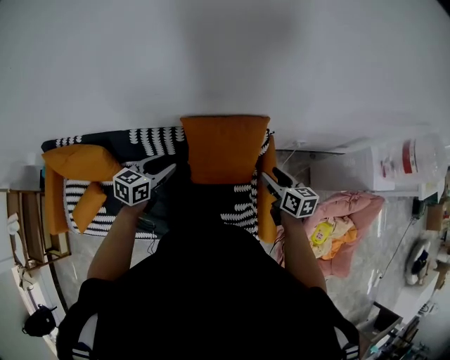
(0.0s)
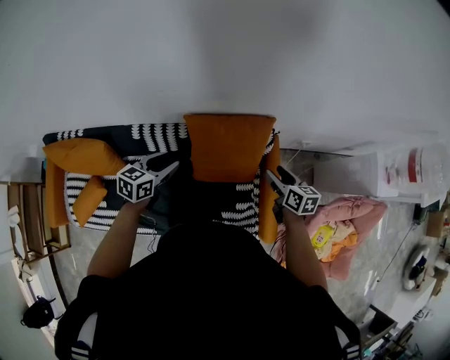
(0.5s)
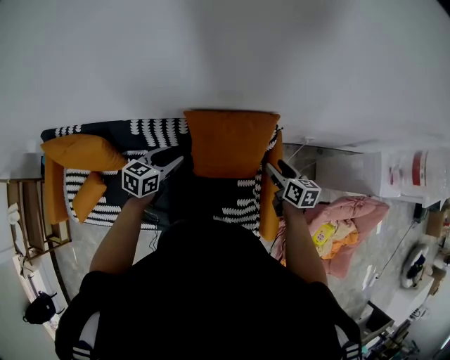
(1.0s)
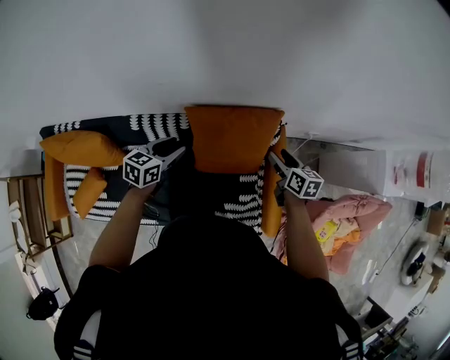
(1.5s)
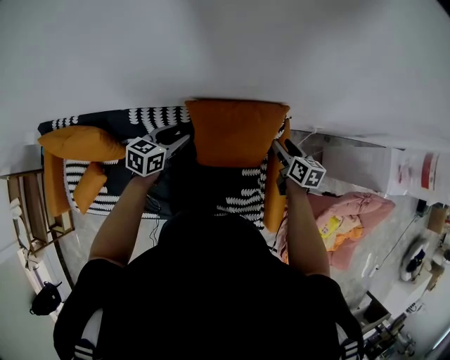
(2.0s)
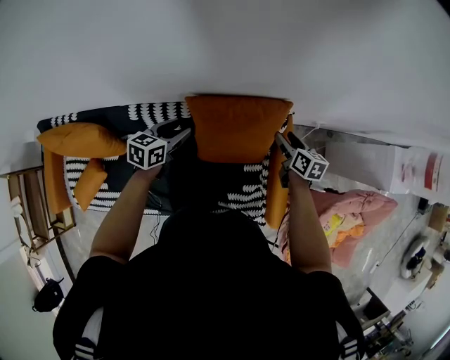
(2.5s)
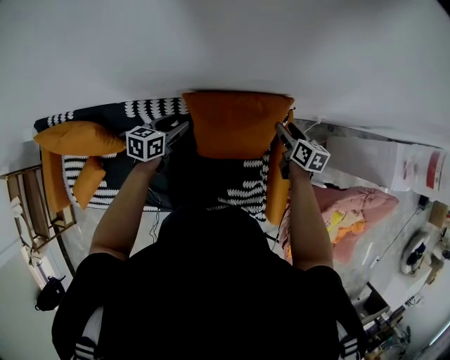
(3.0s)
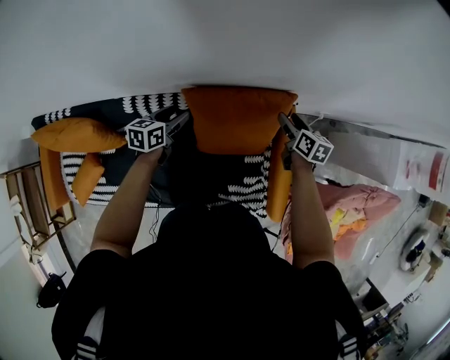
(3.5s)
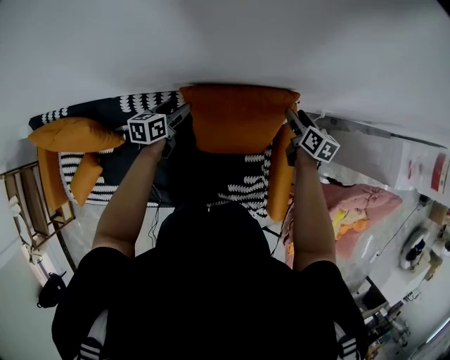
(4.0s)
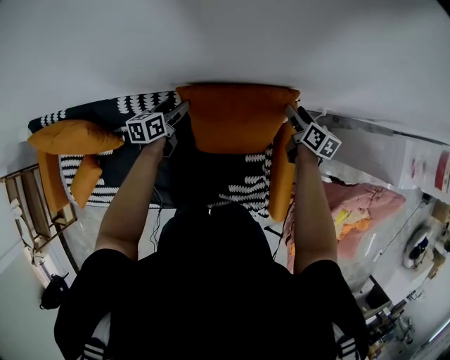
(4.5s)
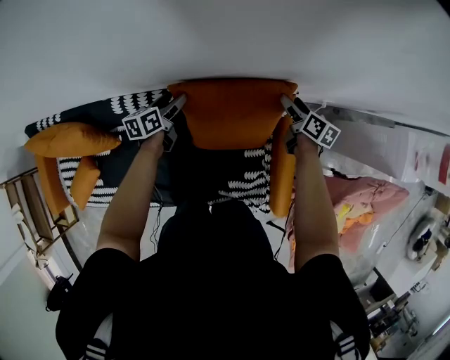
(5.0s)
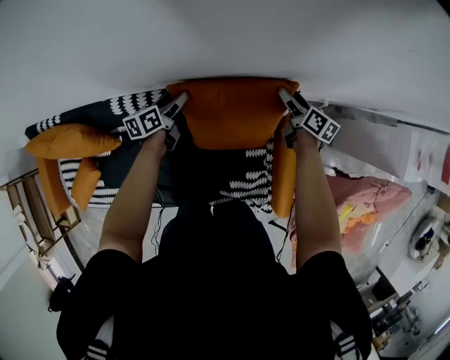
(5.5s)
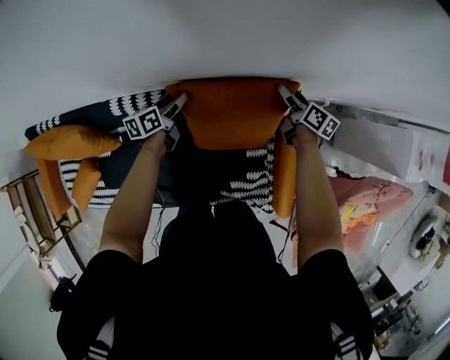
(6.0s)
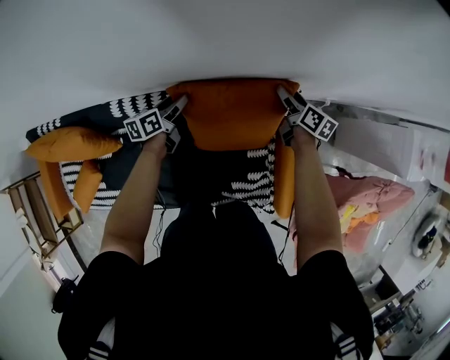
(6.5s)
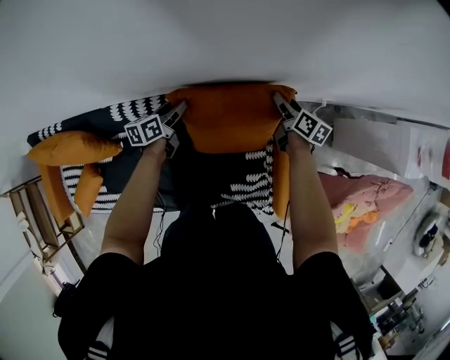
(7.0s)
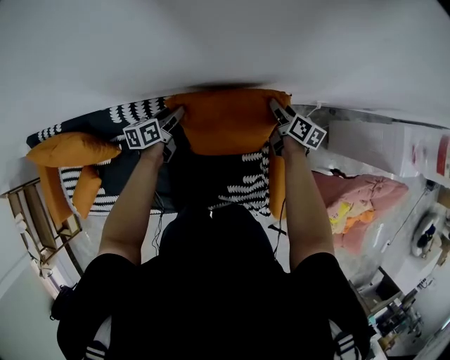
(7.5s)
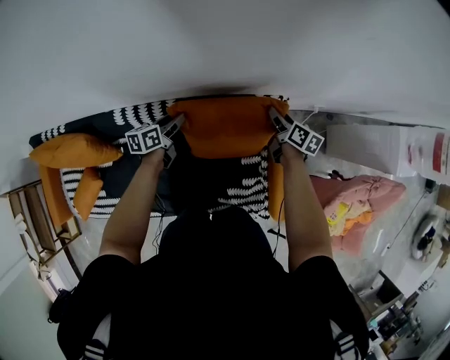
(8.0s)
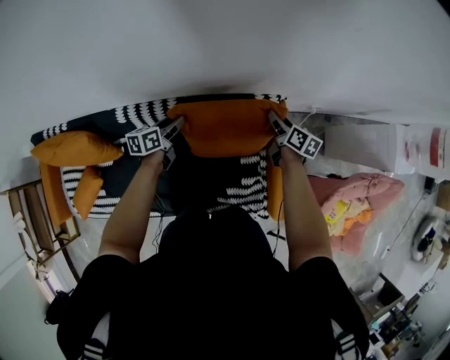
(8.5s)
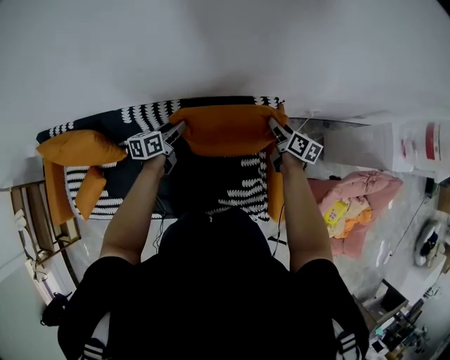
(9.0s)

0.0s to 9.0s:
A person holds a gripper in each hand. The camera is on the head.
0.0s to 2.0s: The grippers both shift forward and downward by approximately 15 cm.
2.0s to 4.5s: The right gripper travels forward and downward by some 10 cm, while the left gripper heads downward and forward, covering some 15 cm, changes its angle by approximately 20 degrees, and opens its fingers.
4.5s to 7.0s: The grippers stay close to where they were, moving slightly.
7.0s to 9.0s: The two grippers go roughly 10 cm backward and upward.

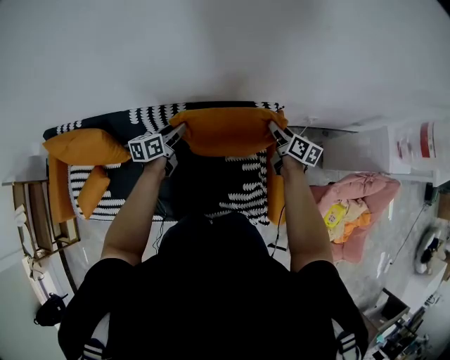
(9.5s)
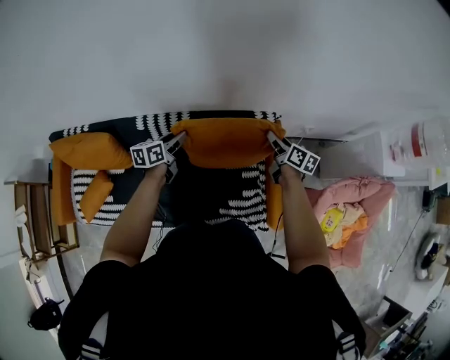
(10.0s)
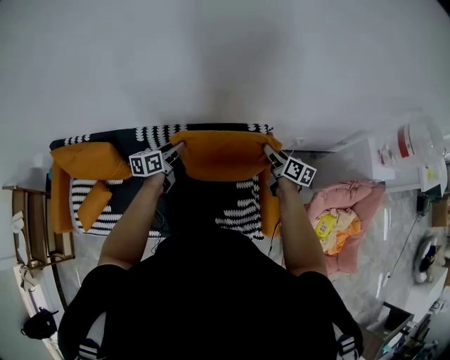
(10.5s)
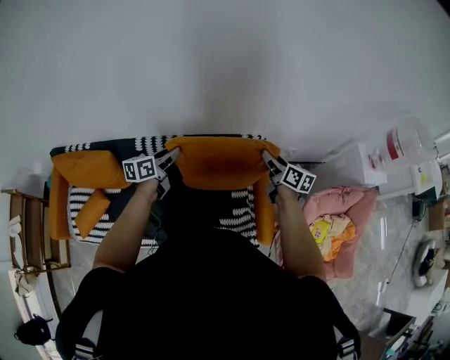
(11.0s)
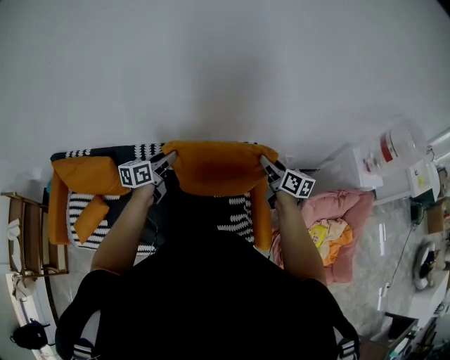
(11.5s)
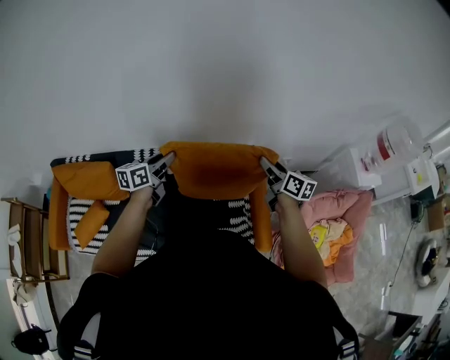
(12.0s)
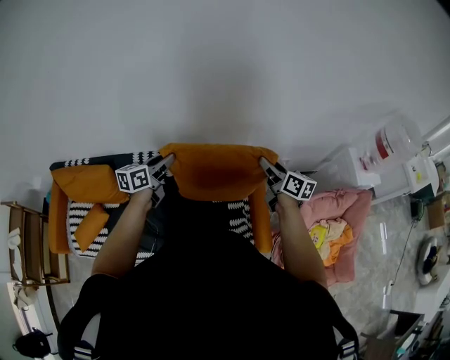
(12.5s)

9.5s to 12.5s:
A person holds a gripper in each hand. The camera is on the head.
9.5s to 11.0s: Both grippers move upward and backward, some 15 cm.
11.0s to 12.5s: Both grippers travel together upward, some 5 cm.

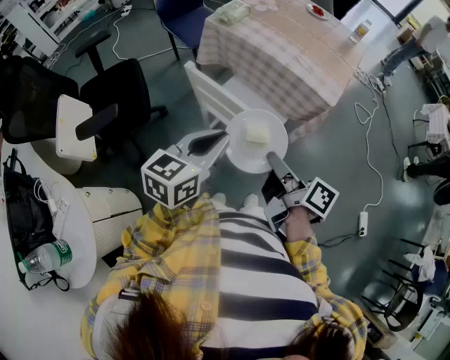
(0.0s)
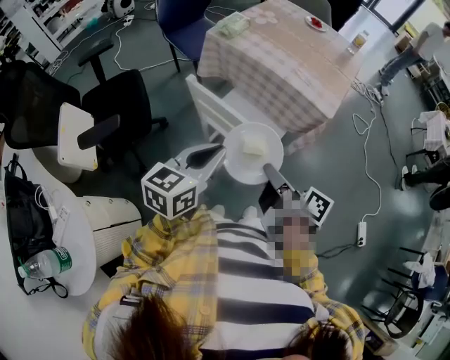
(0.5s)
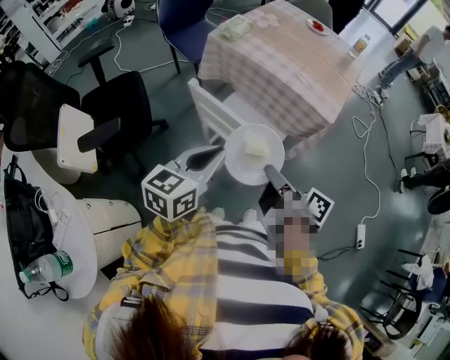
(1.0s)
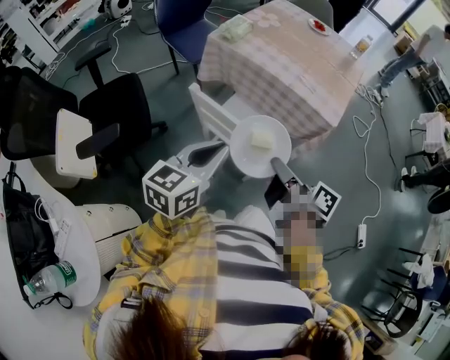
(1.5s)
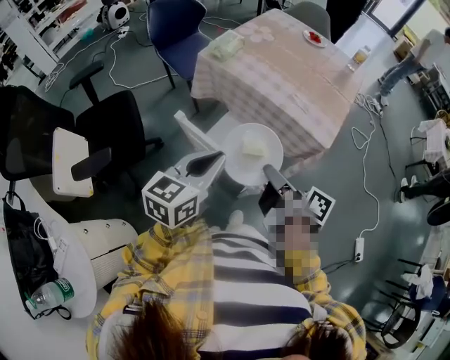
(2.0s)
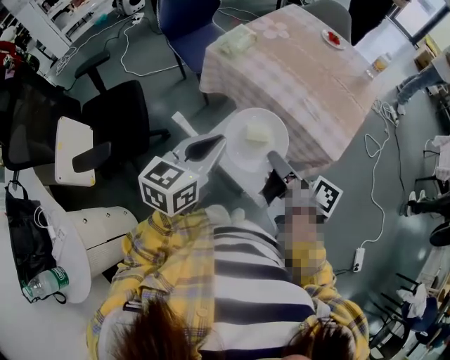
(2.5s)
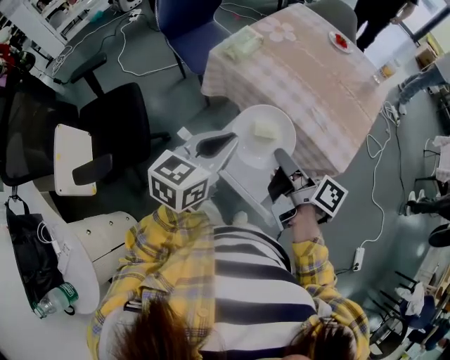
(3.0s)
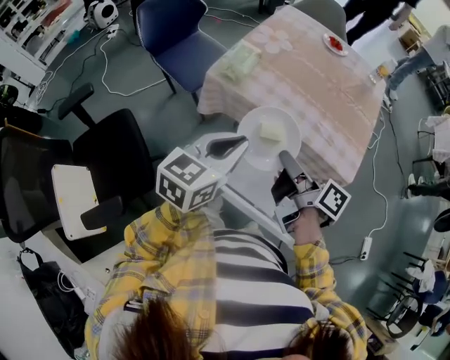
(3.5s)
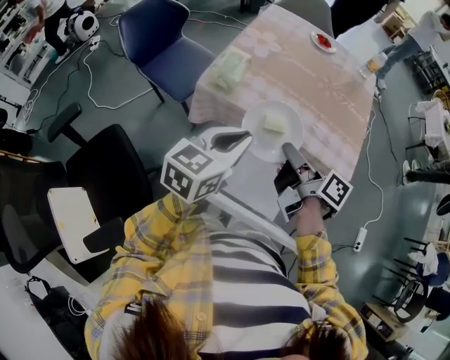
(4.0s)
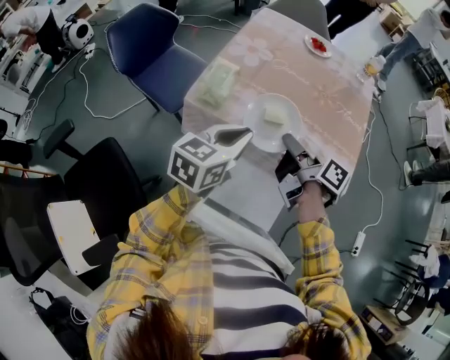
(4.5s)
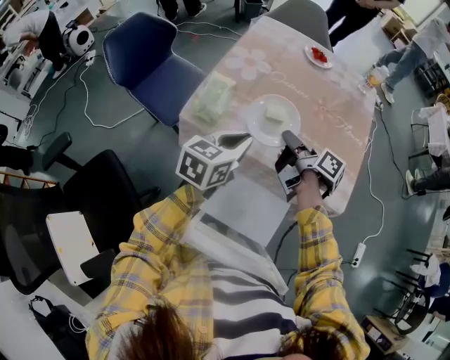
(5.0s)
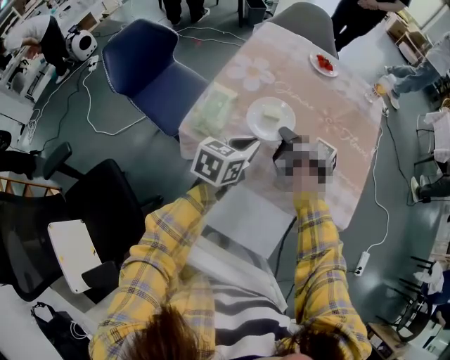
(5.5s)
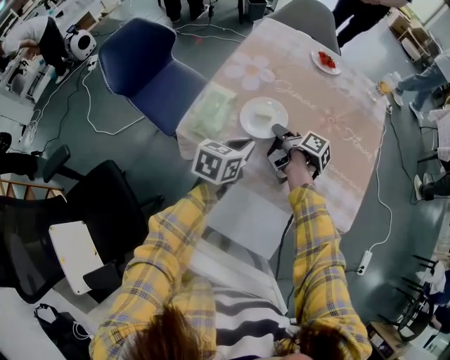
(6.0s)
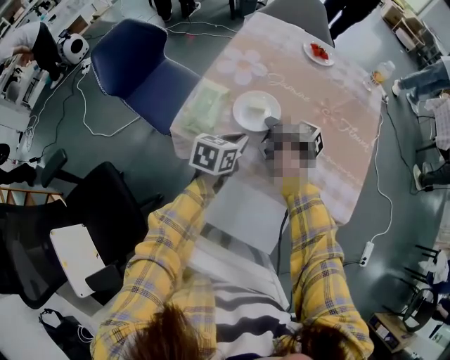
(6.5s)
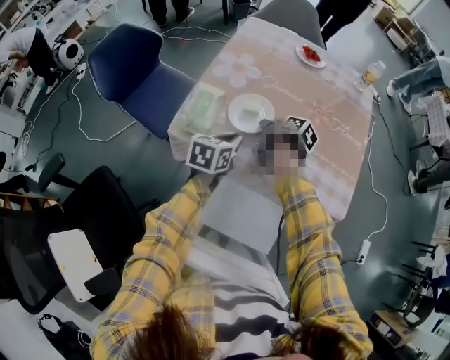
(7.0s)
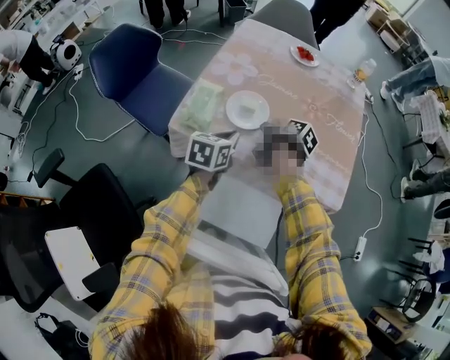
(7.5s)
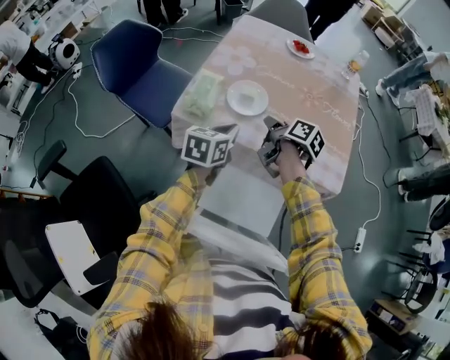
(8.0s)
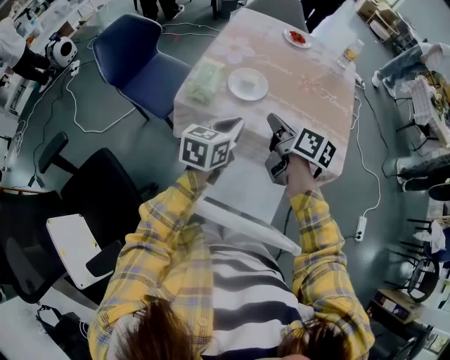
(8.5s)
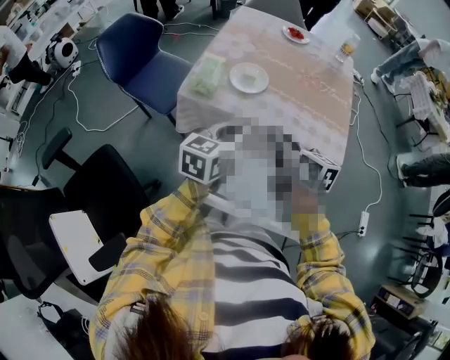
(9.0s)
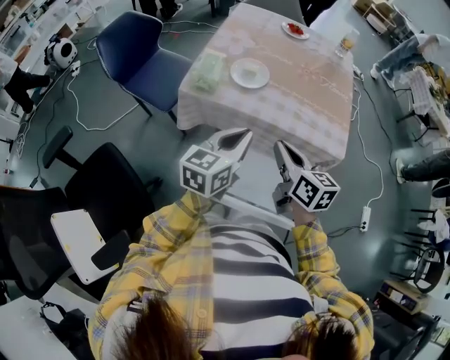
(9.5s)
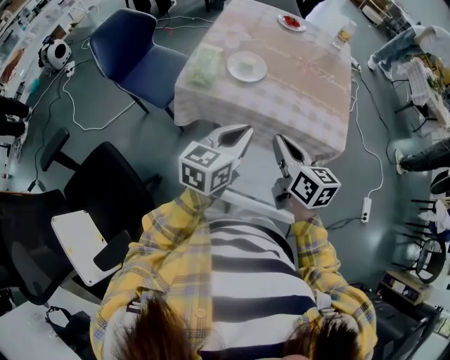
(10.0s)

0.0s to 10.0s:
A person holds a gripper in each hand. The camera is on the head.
0.0s to 2.0s: Both grippers move forward, some 10 cm.
2.0s to 4.0s: Both grippers move forward, approximately 25 cm.
4.0s to 6.0s: Both grippers travel together forward and downward, about 30 cm.
6.0s to 8.0s: The left gripper is displaced backward by roughly 5 cm; the right gripper travels backward and upward by about 10 cm.
8.0s to 10.0s: The right gripper is displaced backward by roughly 20 cm, and rotates around the line of its fingers by approximately 40 degrees, counterclockwise from behind; the left gripper moves backward and upward, approximately 15 cm.

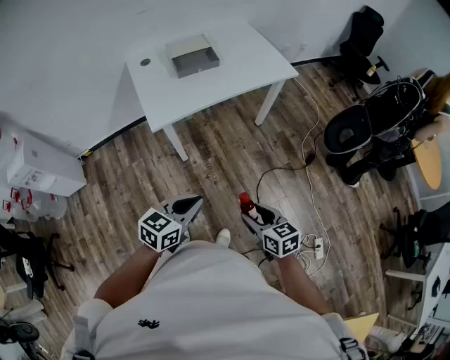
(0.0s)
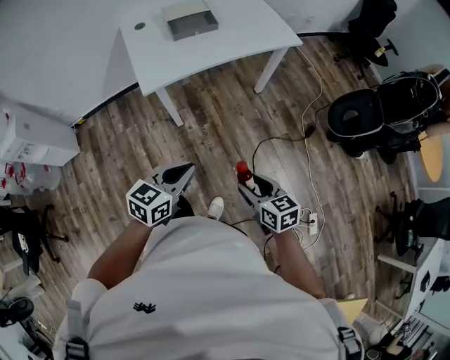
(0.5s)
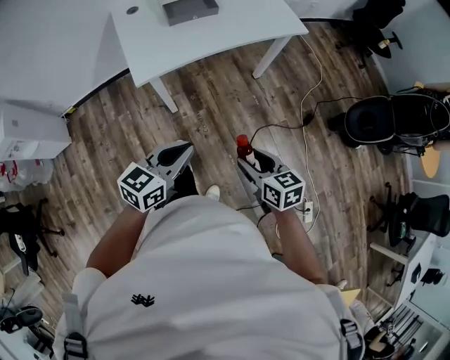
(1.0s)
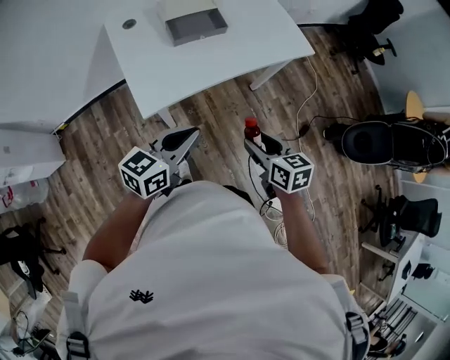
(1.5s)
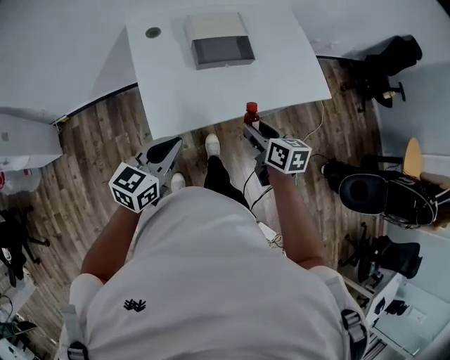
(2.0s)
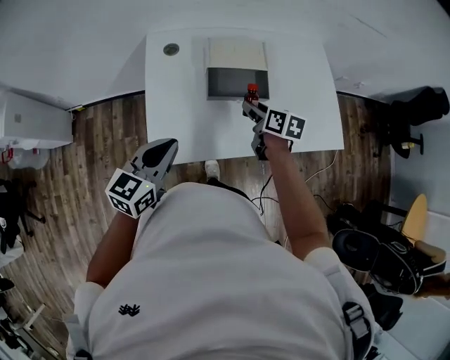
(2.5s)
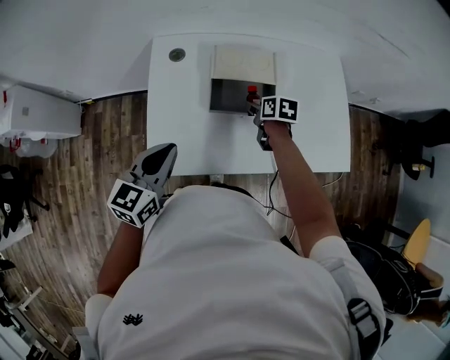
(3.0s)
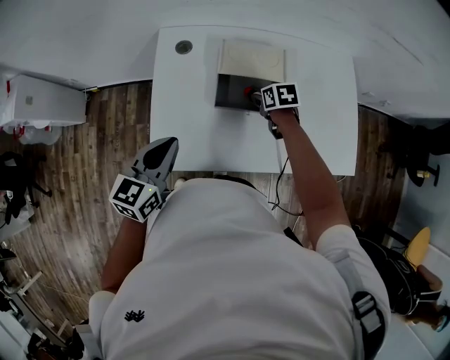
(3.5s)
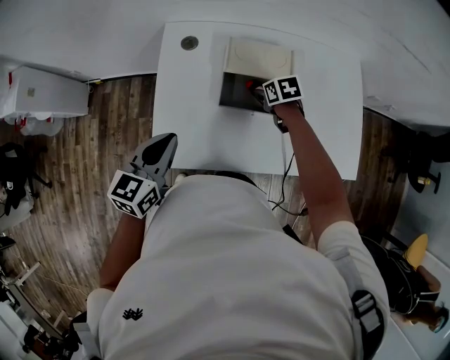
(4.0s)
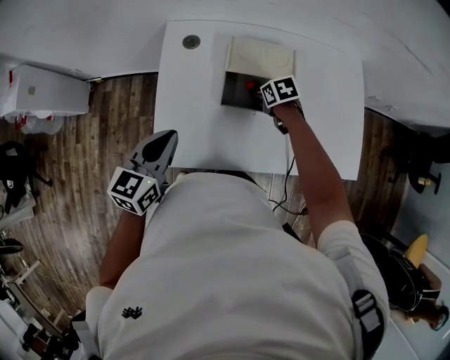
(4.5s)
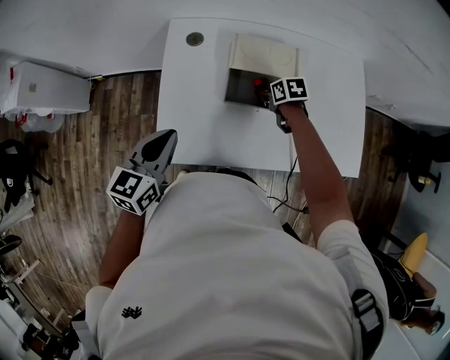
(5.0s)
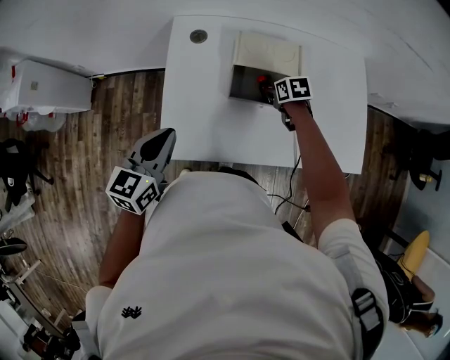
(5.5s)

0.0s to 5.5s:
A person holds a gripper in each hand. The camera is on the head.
0.0s to 2.0s: The left gripper shifts some 35 cm forward and to the left, while the right gripper shifts roughly 40 cm forward.
2.0s to 3.5s: The left gripper changes place by roughly 15 cm, and turns by roughly 30 degrees, while the right gripper moves some 35 cm, and turns by roughly 40 degrees.
3.5s to 5.5s: The grippers make only small movements.
